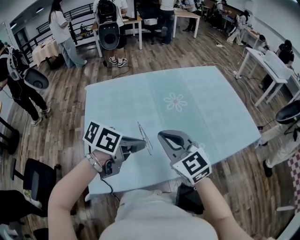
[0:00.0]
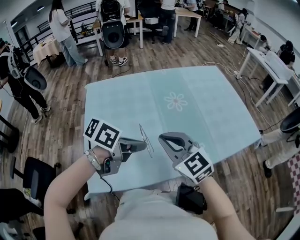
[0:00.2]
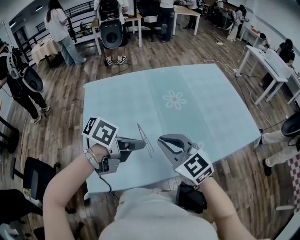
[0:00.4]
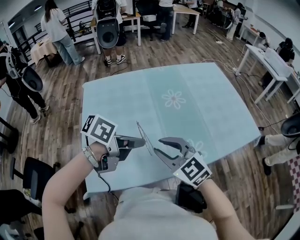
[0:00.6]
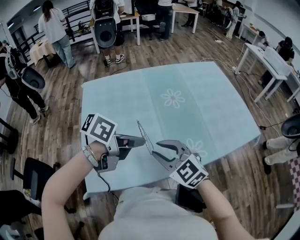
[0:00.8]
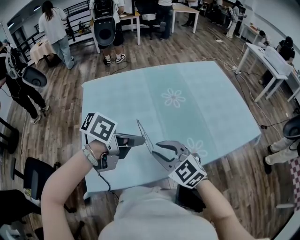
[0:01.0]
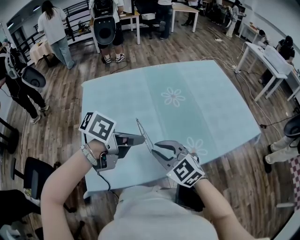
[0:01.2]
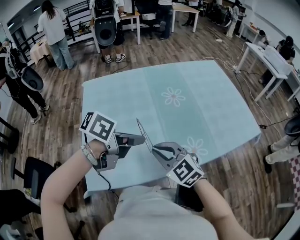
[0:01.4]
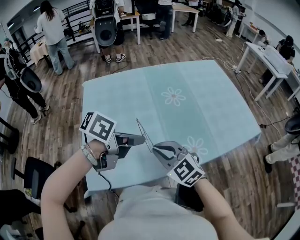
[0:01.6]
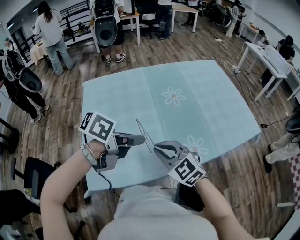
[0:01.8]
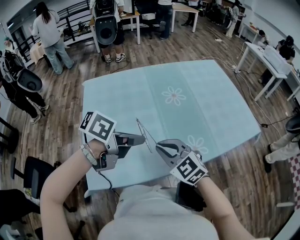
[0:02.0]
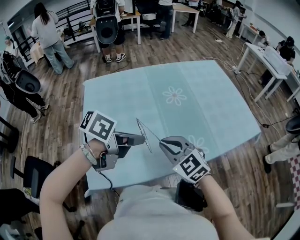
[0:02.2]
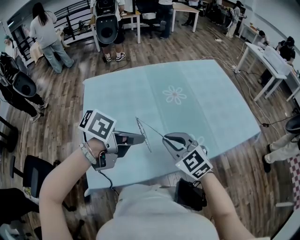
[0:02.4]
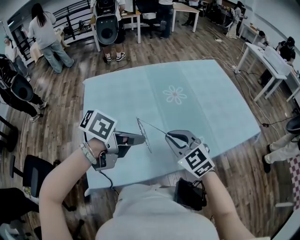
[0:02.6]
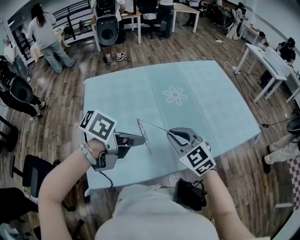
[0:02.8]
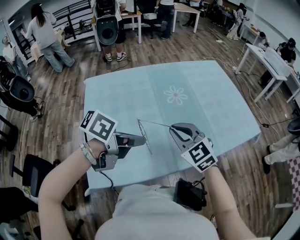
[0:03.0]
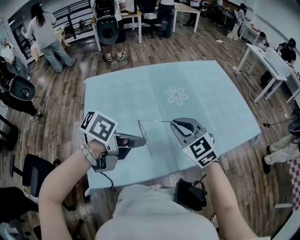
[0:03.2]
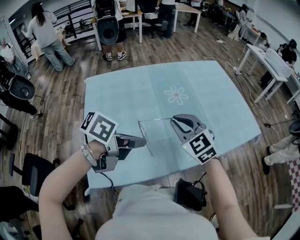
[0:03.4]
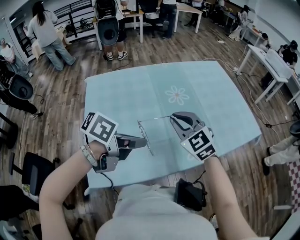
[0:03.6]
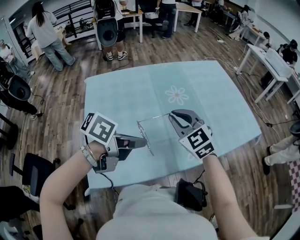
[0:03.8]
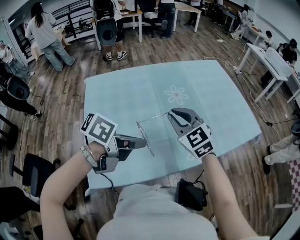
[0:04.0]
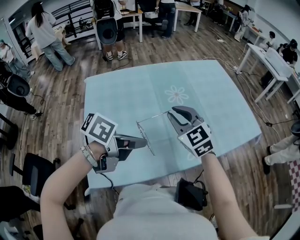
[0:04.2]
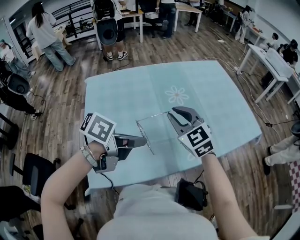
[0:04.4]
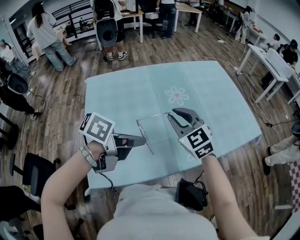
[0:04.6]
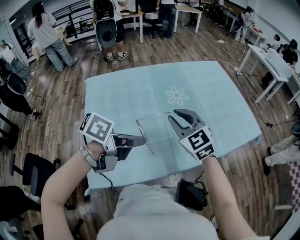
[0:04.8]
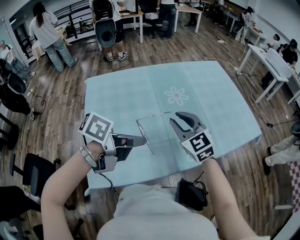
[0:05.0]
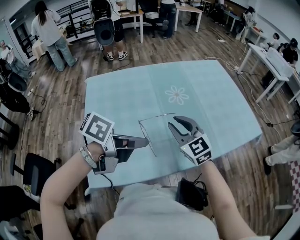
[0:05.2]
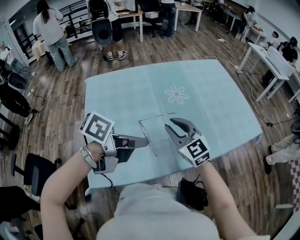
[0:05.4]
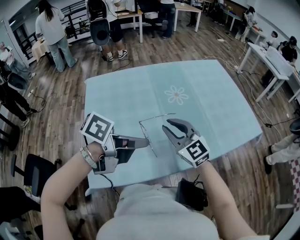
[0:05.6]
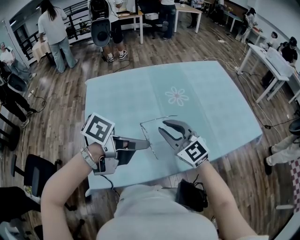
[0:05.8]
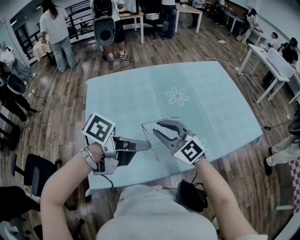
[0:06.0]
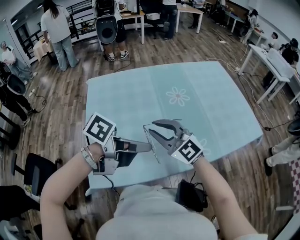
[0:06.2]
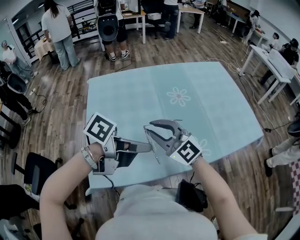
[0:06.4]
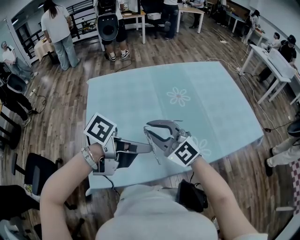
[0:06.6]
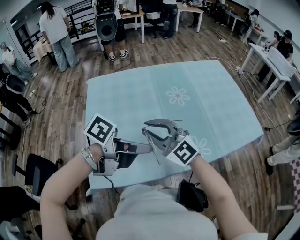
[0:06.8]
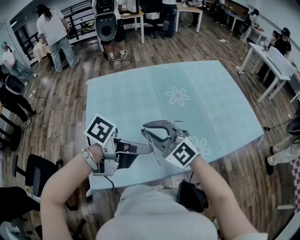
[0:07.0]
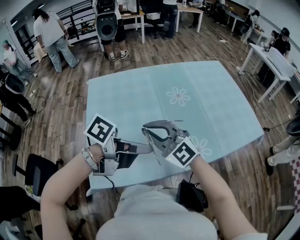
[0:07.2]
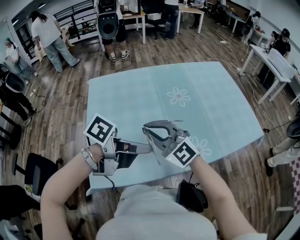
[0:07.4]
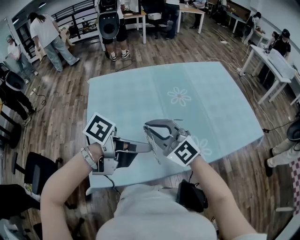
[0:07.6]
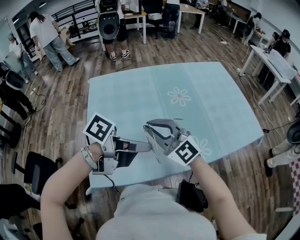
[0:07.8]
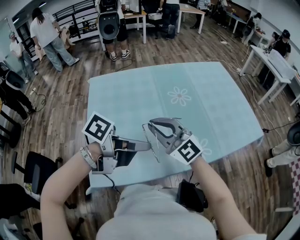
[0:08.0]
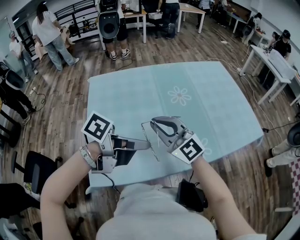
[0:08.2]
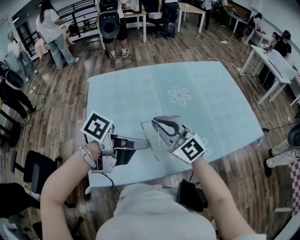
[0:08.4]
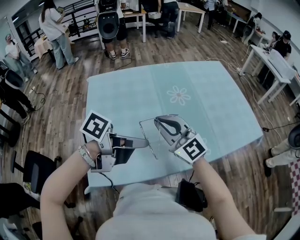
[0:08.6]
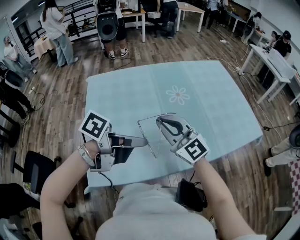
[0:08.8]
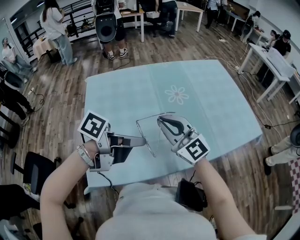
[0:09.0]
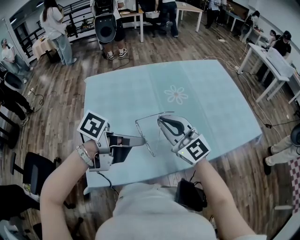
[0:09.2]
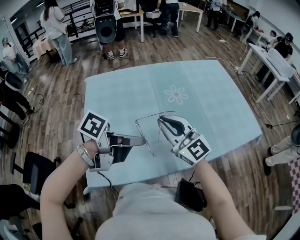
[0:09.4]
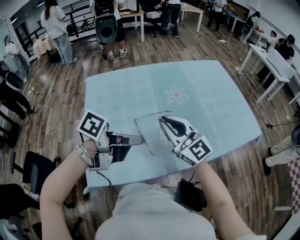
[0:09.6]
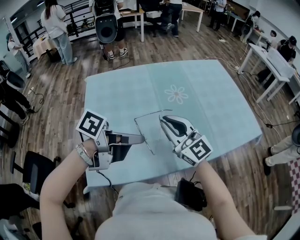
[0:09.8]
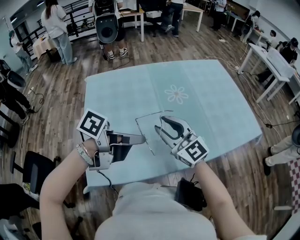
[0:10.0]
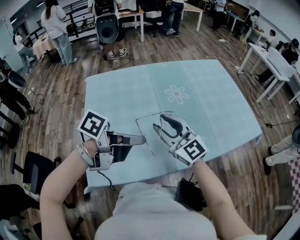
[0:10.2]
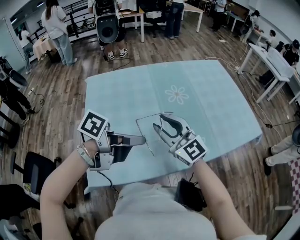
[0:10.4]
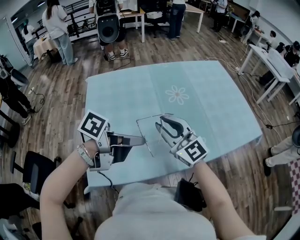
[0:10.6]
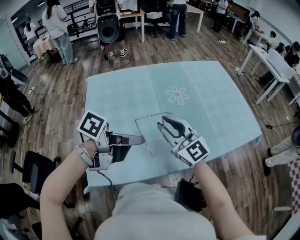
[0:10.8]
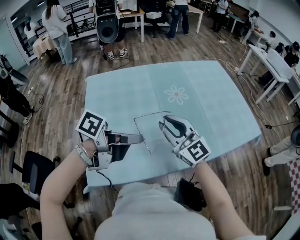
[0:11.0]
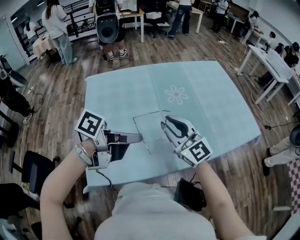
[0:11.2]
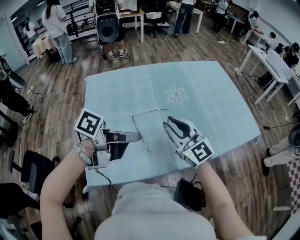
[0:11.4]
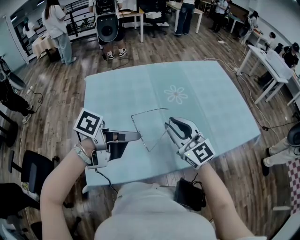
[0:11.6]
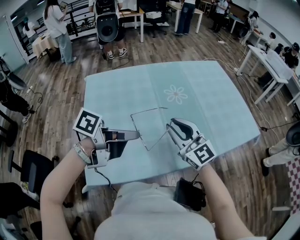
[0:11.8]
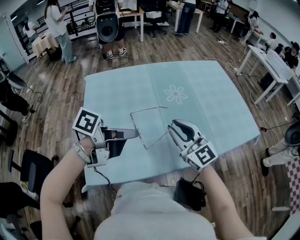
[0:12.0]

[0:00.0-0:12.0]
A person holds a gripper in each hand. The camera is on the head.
0:00.0 to 0:01.6: The right gripper is displaced downward by approximately 10 cm, and opens, then closes once more.
0:01.6 to 0:03.0: The right gripper shifts by about 10 cm.
0:03.0 to 0:04.4: The right gripper moves approximately 5 cm.
0:04.4 to 0:06.0: The right gripper shifts by roughly 5 cm, and swivels some 20 degrees.
0:06.0 to 0:07.6: The right gripper changes place by approximately 5 cm.
0:07.6 to 0:09.0: The right gripper moves roughly 5 cm.
0:09.0 to 0:10.4: The right gripper opens up.
0:10.4 to 0:12.0: The right gripper shifts by approximately 5 cm.

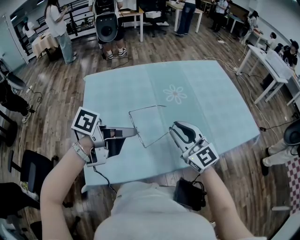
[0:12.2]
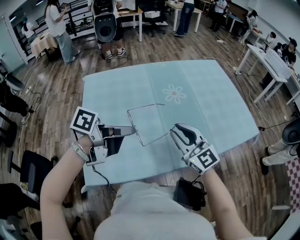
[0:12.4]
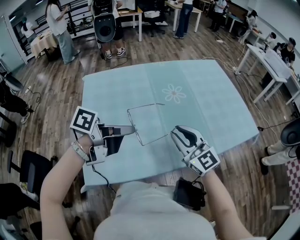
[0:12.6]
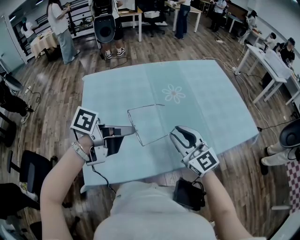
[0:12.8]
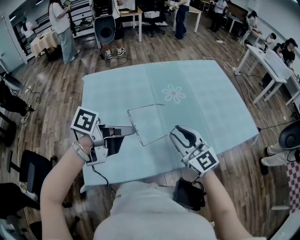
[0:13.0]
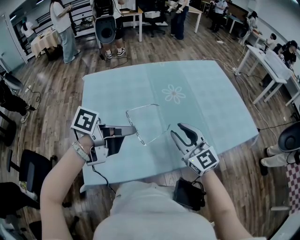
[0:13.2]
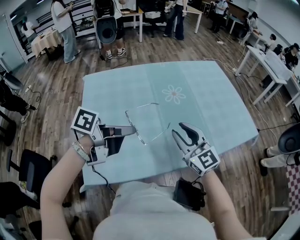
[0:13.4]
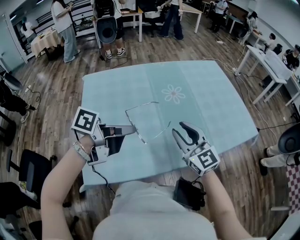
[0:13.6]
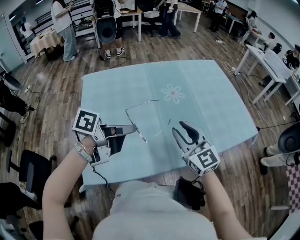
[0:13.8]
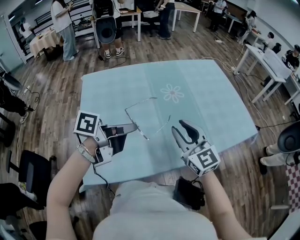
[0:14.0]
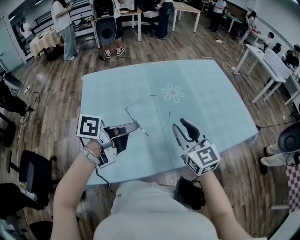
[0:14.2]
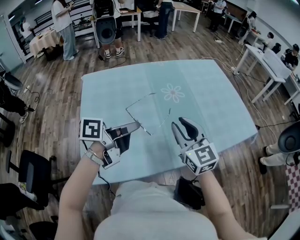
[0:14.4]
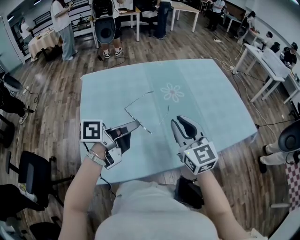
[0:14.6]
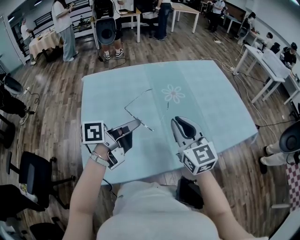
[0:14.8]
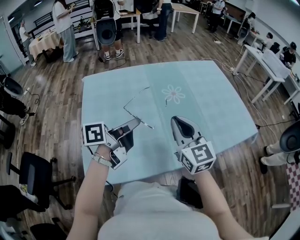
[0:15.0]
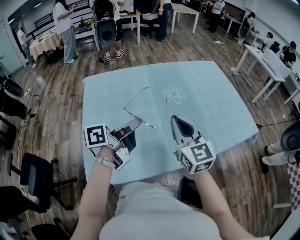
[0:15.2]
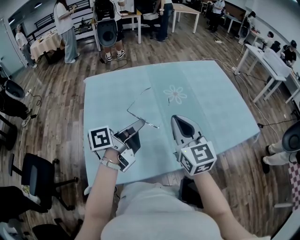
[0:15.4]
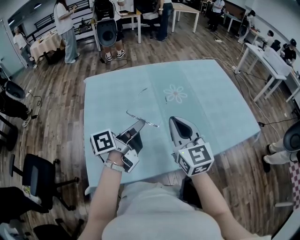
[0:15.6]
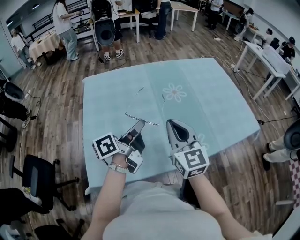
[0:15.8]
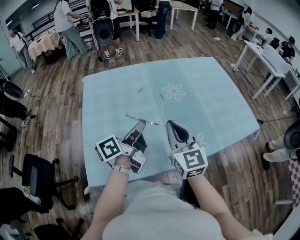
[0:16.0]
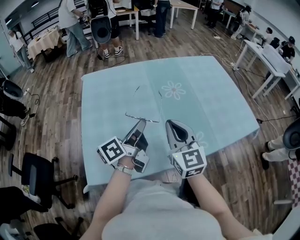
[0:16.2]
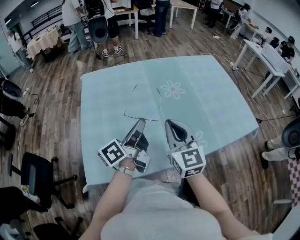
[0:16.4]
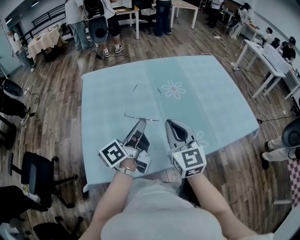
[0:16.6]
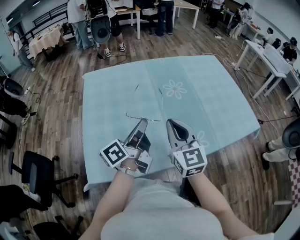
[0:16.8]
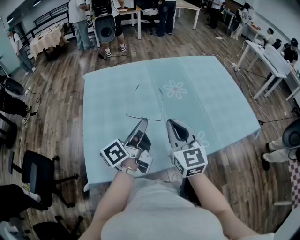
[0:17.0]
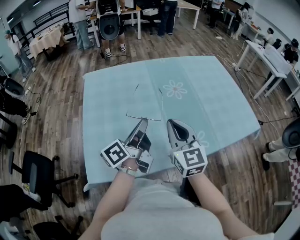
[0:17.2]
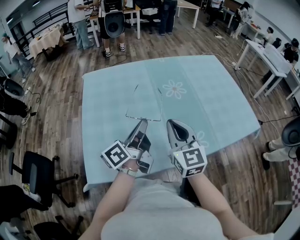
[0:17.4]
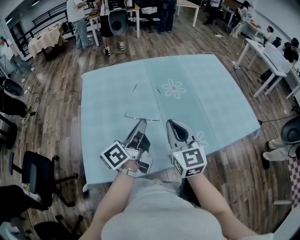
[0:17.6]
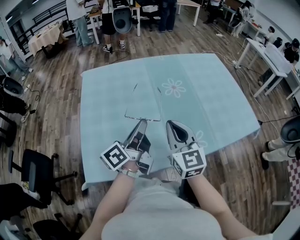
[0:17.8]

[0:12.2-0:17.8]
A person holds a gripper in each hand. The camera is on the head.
0:12.2 to 0:13.6: There are only small adjustments of the grippers.
0:13.6 to 0:15.0: The right gripper closes. The left gripper turns by roughly 20 degrees.
0:15.0 to 0:16.4: The left gripper rotates about 30 degrees.
0:16.4 to 0:17.8: Neither gripper changes place.

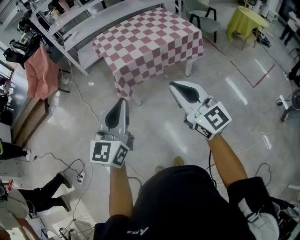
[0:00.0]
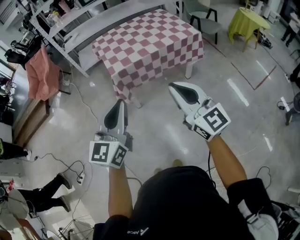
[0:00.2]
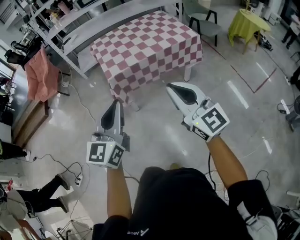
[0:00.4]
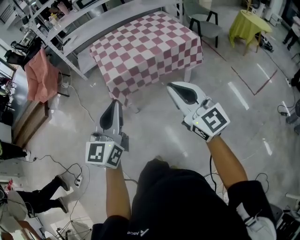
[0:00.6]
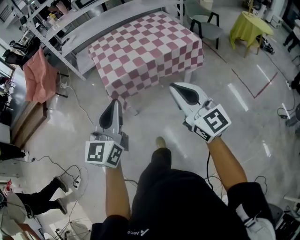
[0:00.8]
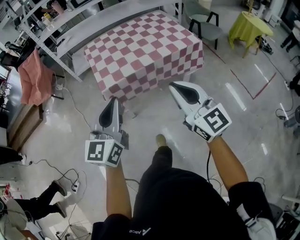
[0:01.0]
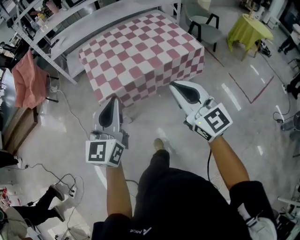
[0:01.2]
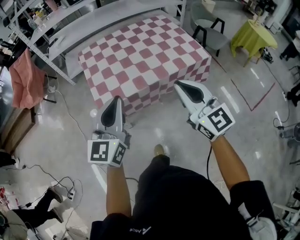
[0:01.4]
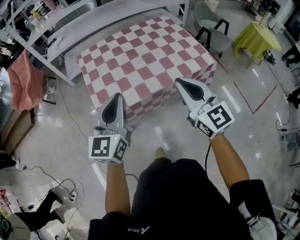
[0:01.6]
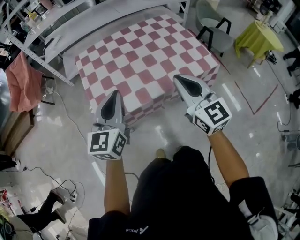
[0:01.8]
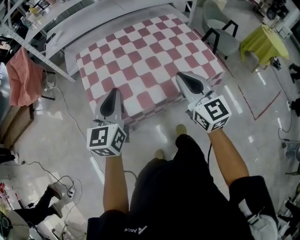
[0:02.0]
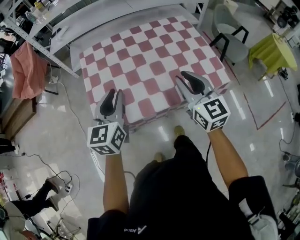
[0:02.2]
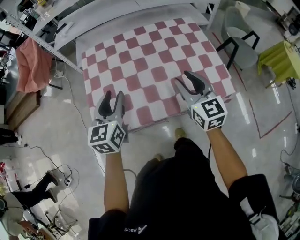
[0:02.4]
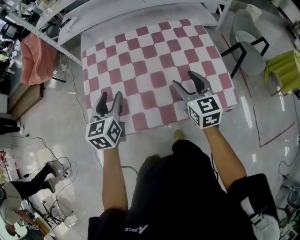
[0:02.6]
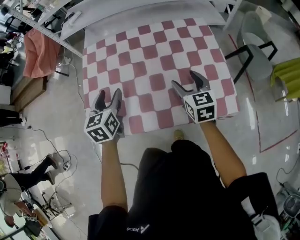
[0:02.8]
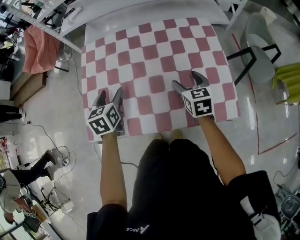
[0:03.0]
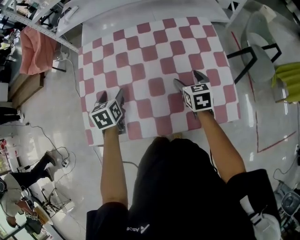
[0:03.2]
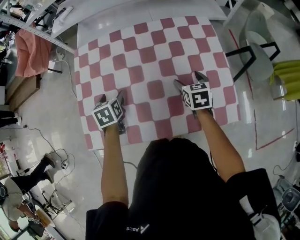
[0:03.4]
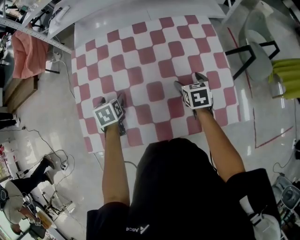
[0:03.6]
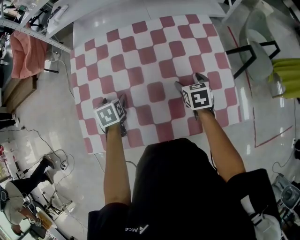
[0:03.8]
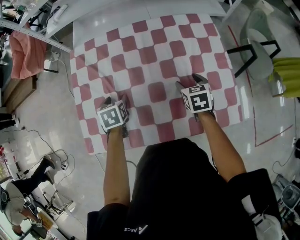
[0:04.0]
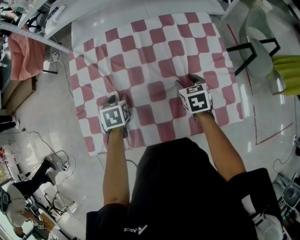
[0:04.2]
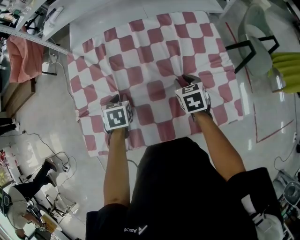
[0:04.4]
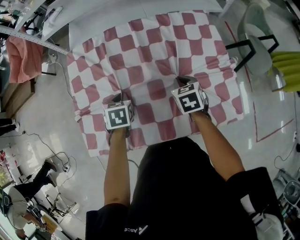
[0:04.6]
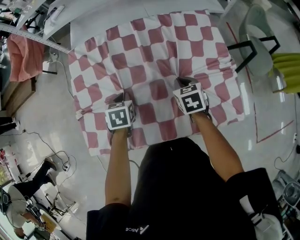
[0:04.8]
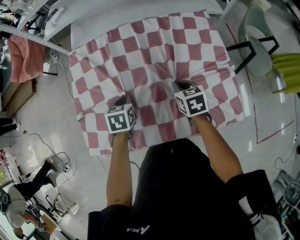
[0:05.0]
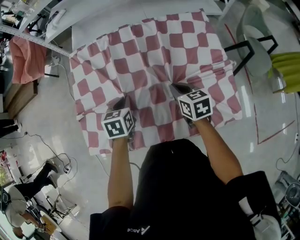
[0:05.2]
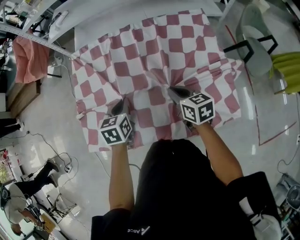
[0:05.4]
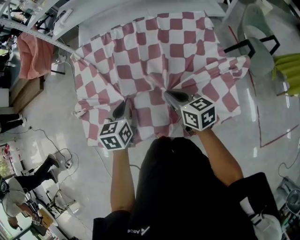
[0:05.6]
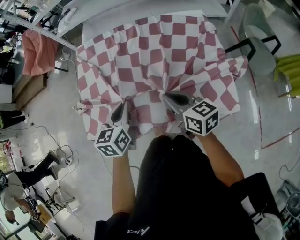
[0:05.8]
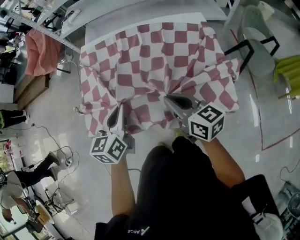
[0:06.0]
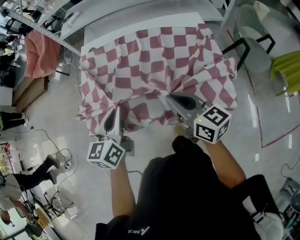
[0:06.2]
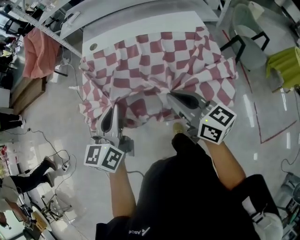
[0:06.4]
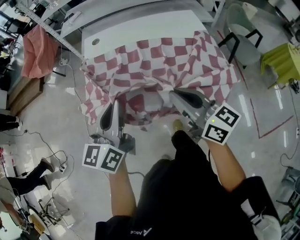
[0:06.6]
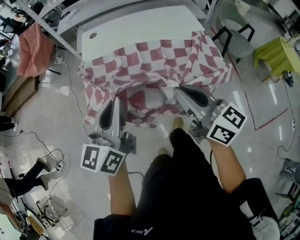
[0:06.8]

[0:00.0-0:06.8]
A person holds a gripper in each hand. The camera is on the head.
0:00.0 to 0:01.4: Both grippers are carried forward, roughly 40 cm.
0:01.4 to 0:02.8: Both grippers move forward and downward, approximately 50 cm. The left gripper tilts its fingers some 30 degrees downward, and opens. Meanwhile the right gripper swivels approximately 30 degrees, and opens its fingers.
0:02.8 to 0:04.0: The grippers both shift downward and forward by about 15 cm. The right gripper turns by approximately 20 degrees, while the left gripper tilts its fingers approximately 30 degrees downward.
0:04.0 to 0:05.4: The right gripper goes roughly 10 cm to the left, backward and upward, turns by roughly 30 degrees, and closes. The left gripper is displaced to the right, upward and backward by approximately 10 cm, and closes up.
0:05.4 to 0:06.8: The left gripper goes approximately 40 cm backward and upward, and angles its fingers upward, by some 40 degrees. The right gripper shifts approximately 40 cm backward, upward and to the left, and tips its fingers upward by some 30 degrees.
